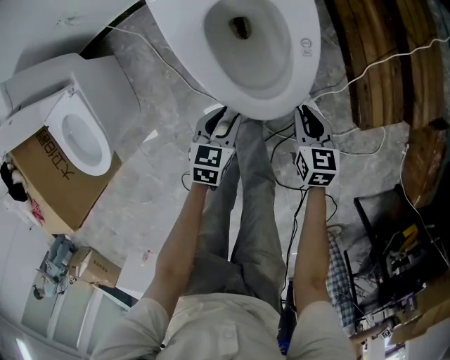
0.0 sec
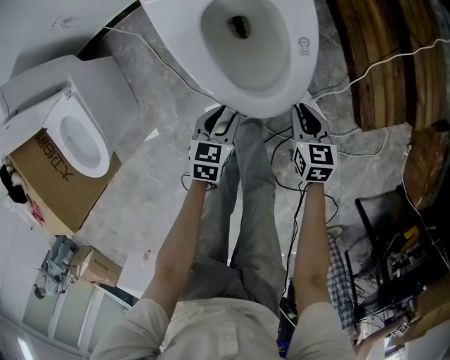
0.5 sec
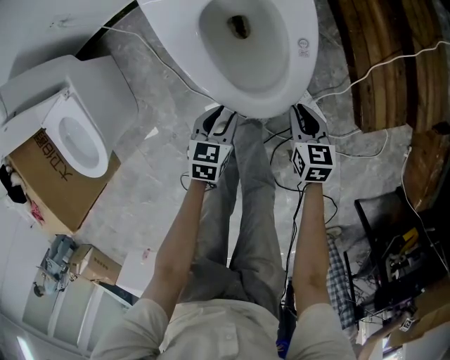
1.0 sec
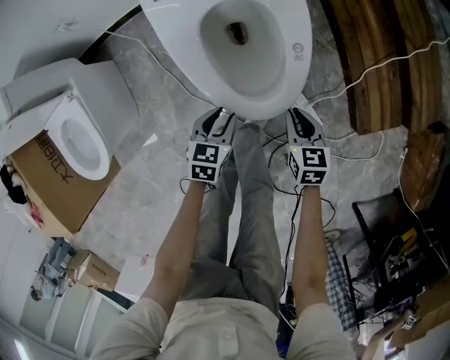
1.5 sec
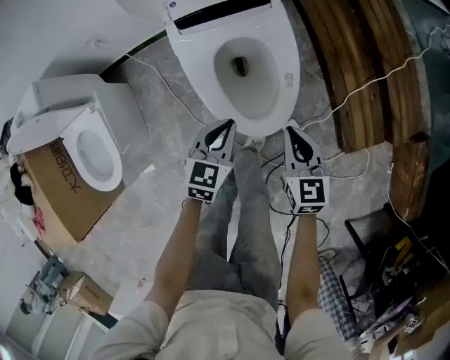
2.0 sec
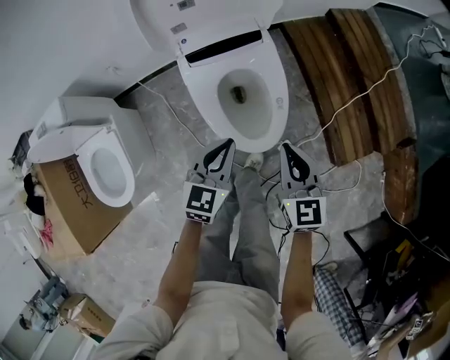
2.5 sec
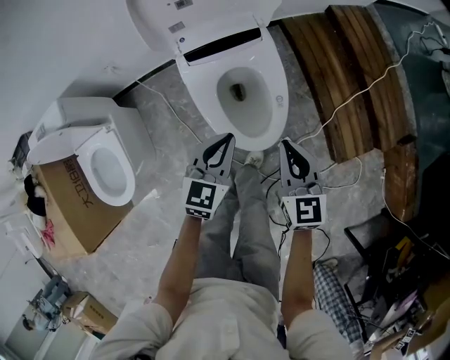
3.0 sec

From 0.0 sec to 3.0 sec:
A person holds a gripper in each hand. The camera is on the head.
From 0.0 sec to 1.5 sec: The grippers stay close to where they were, moving slightly.
From 1.5 sec to 3.0 sec: Both grippers travel together upward, roughly 30 cm. The left gripper rotates approximately 30 degrees, and closes up, while the right gripper turns by approximately 30 degrees.

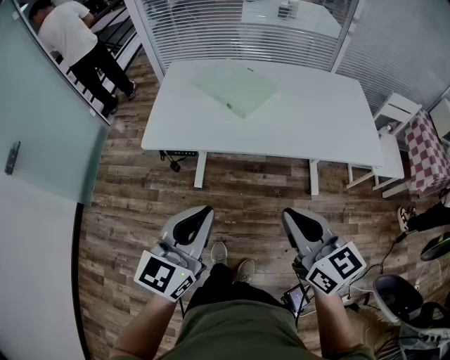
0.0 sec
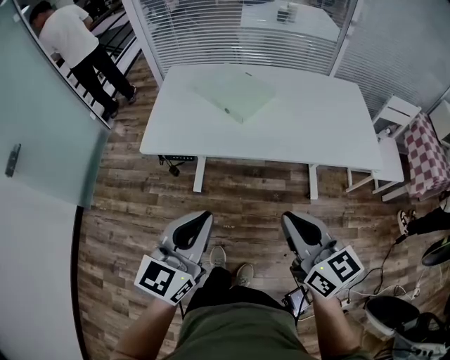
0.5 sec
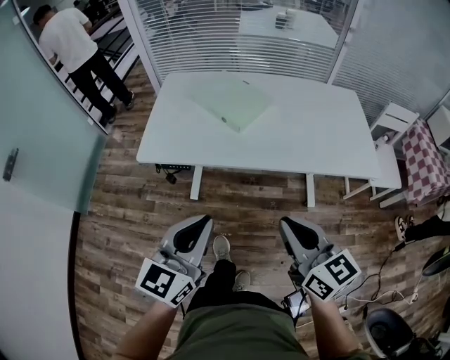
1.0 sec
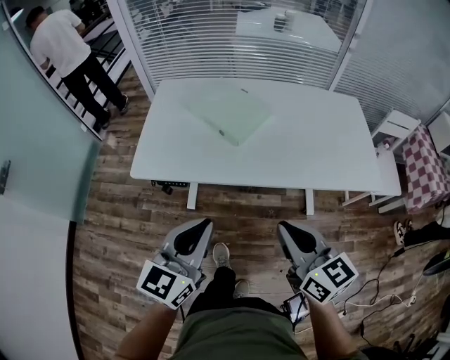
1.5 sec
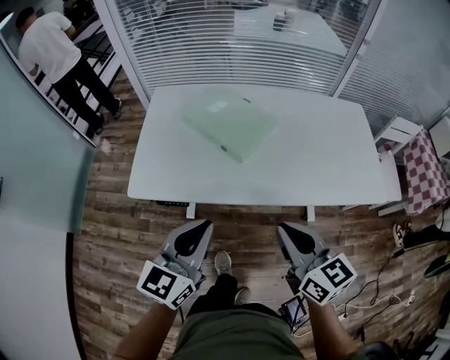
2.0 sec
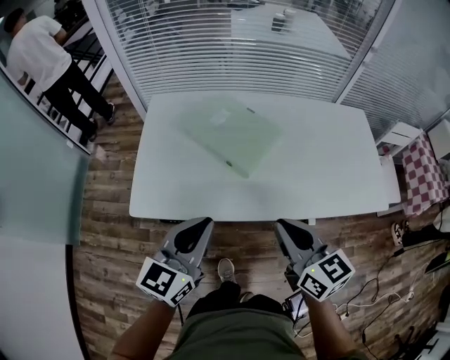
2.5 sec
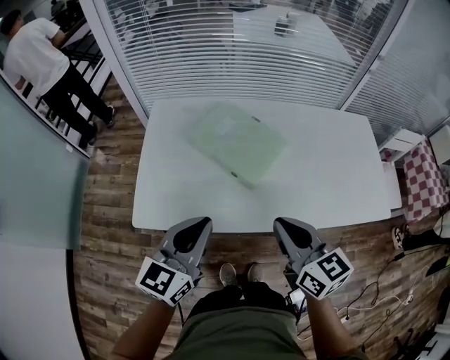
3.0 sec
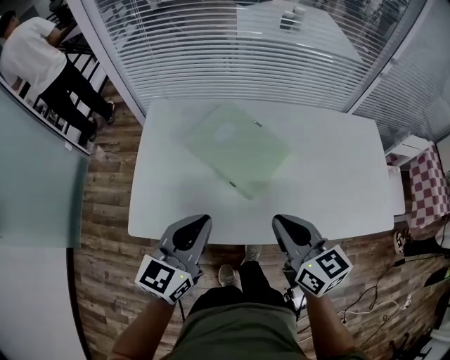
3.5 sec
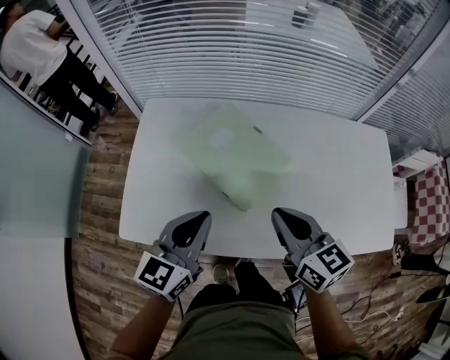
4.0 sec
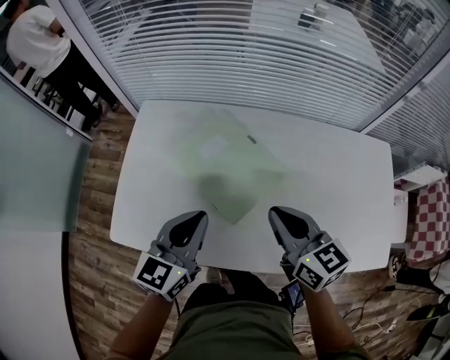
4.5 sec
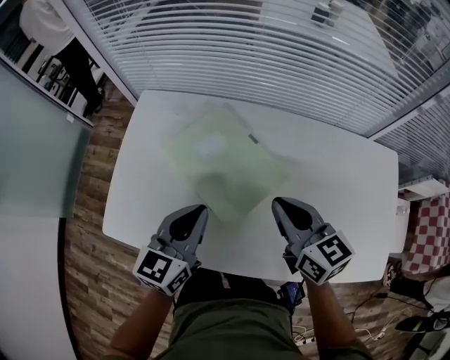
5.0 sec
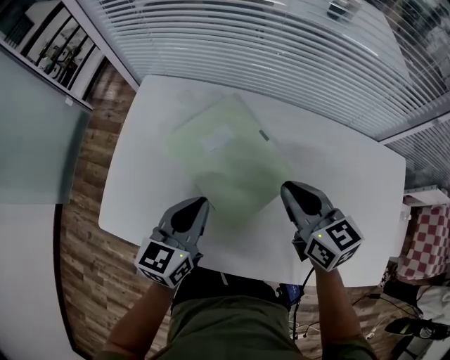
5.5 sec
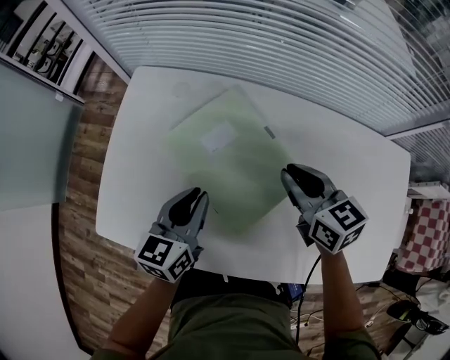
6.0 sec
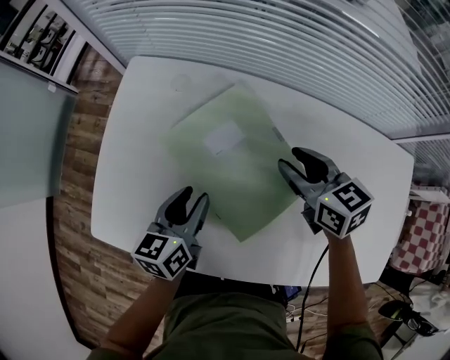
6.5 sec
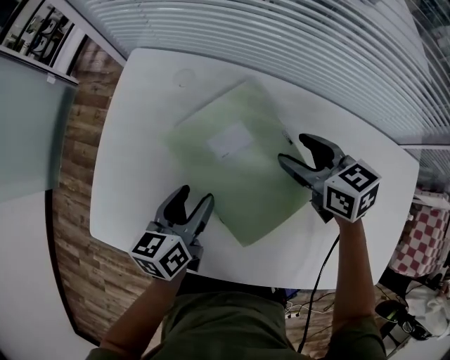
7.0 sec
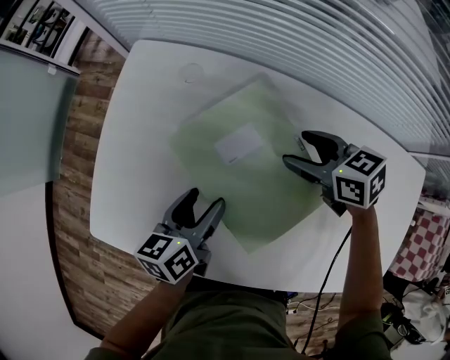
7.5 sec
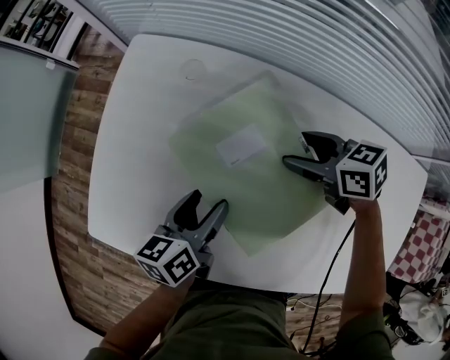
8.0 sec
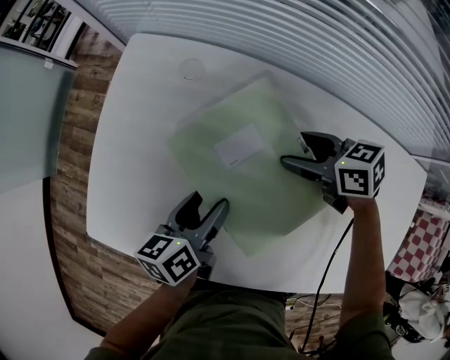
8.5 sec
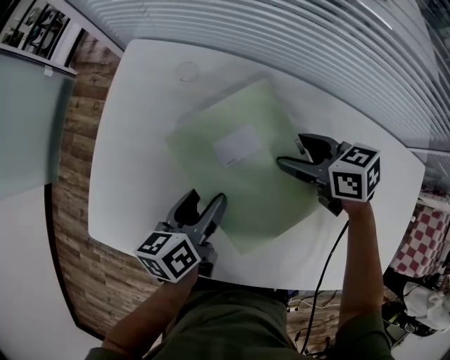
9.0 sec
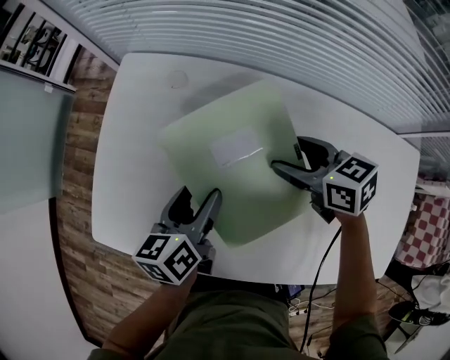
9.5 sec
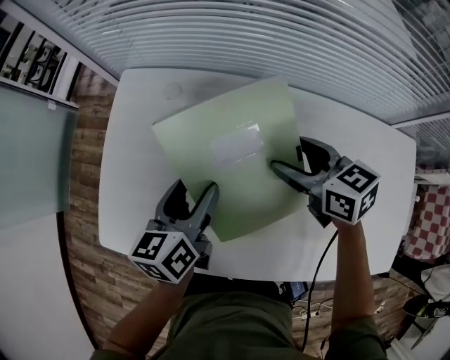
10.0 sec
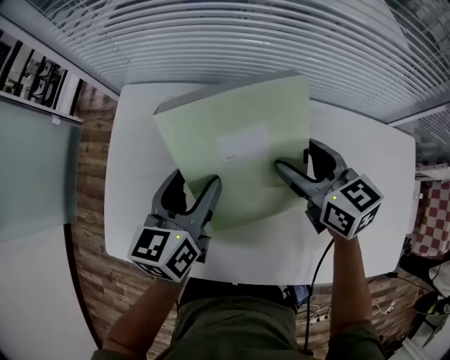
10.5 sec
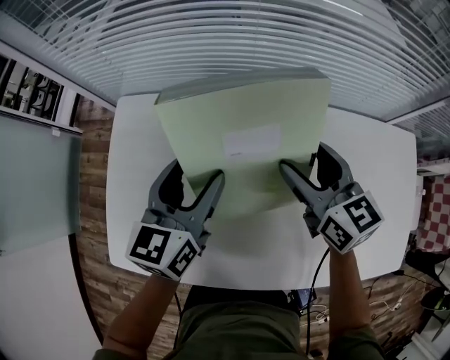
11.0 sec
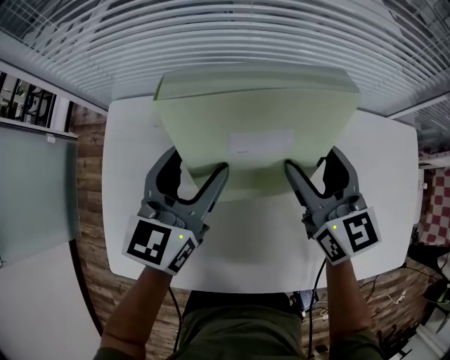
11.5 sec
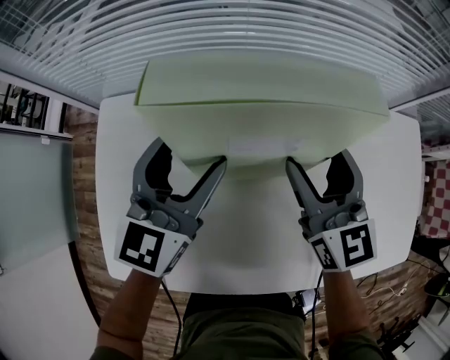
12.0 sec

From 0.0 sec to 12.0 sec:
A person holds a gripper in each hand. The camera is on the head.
From 0.0 sec to 2.0 sec: Both grippers move forward, about 15 cm.
From 2.0 sec to 4.0 sec: Both grippers move forward, approximately 25 cm.
From 4.0 sec to 6.0 sec: The left gripper travels downward and forward by some 15 cm, and changes its angle by roughly 20 degrees. The right gripper heads forward and downward, covering approximately 20 cm.
From 6.0 sec to 8.0 sec: The left gripper moves downward, roughly 10 cm, swivels some 30 degrees, and opens. Meanwhile the right gripper moves downward and forward, about 15 cm, rotates about 30 degrees, and opens up.
From 8.0 sec to 10.0 sec: The left gripper is displaced upward by some 10 cm, while the right gripper is displaced upward and backward by roughly 10 cm, and swivels some 20 degrees.
From 10.0 sec to 12.0 sec: The right gripper moves upward, approximately 5 cm, and swivels about 40 degrees; the left gripper moves roughly 15 cm, and rotates approximately 50 degrees.

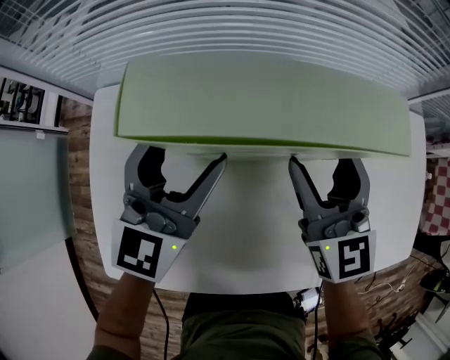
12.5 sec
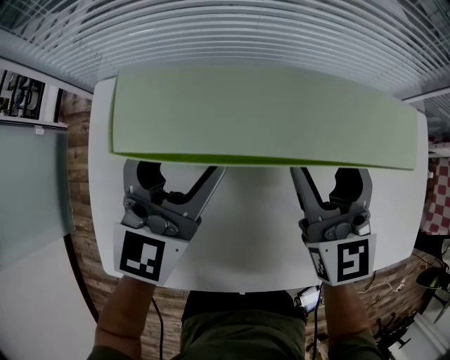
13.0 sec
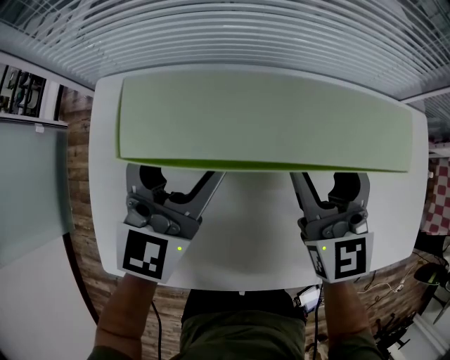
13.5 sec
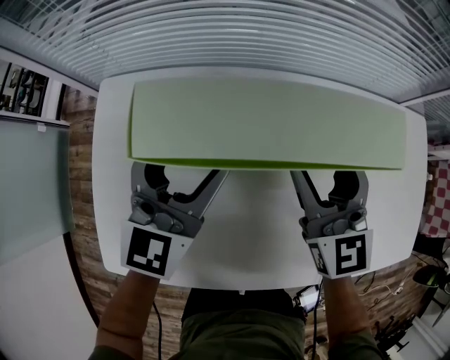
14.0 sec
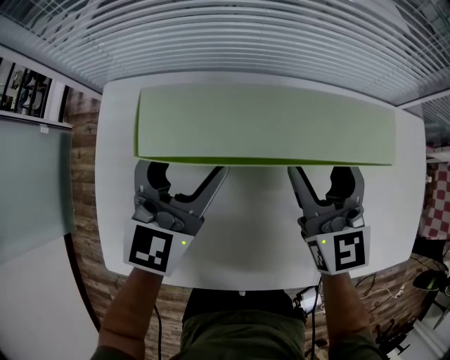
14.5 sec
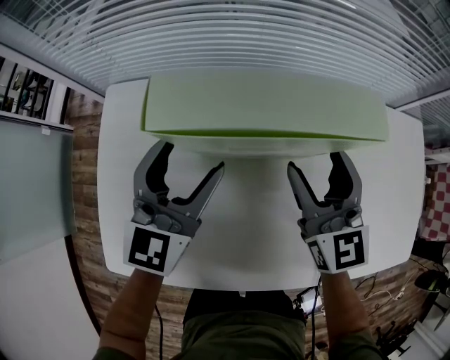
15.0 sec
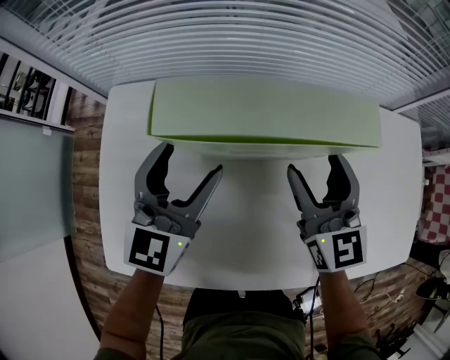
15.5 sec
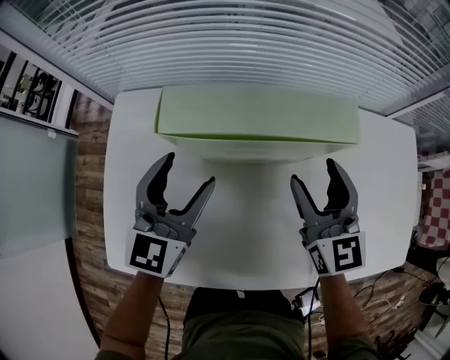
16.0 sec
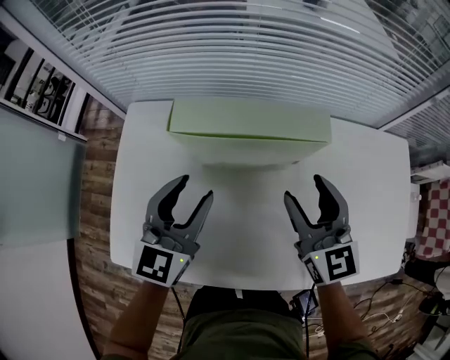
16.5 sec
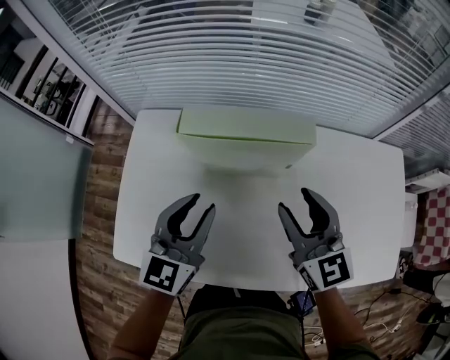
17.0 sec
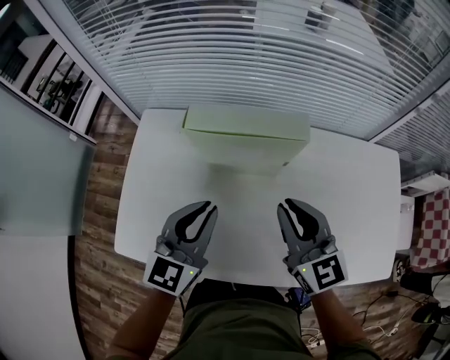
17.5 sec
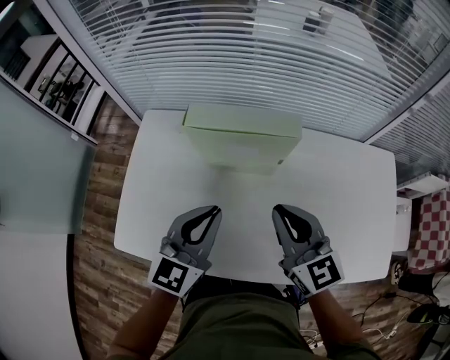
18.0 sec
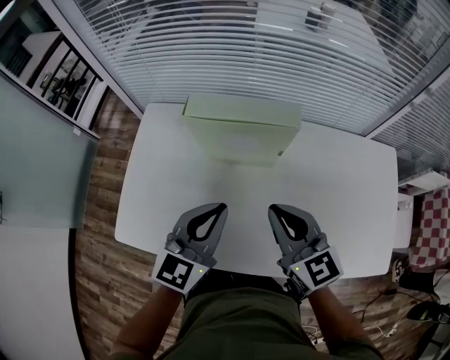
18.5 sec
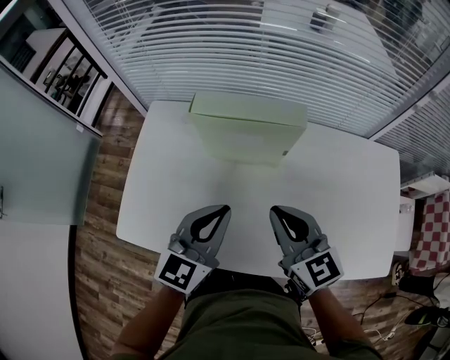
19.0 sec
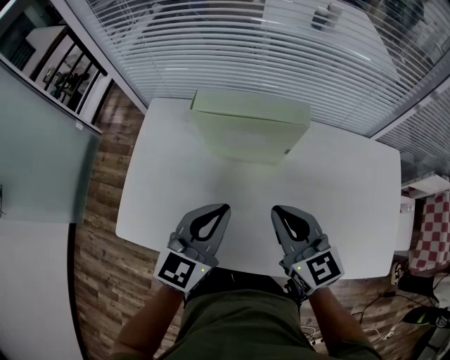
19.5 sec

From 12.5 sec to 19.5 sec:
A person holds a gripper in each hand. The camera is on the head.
From 12.5 sec to 14.5 sec: The grippers move only a little.
From 14.5 sec to 16.0 sec: The grippers stay close to where they were, moving slightly.
From 16.0 sec to 17.5 sec: Both grippers move backward and upward, about 10 cm. The right gripper closes its fingers. Meanwhile the left gripper closes up.
From 17.5 sec to 19.5 sec: The left gripper moves about 5 cm.

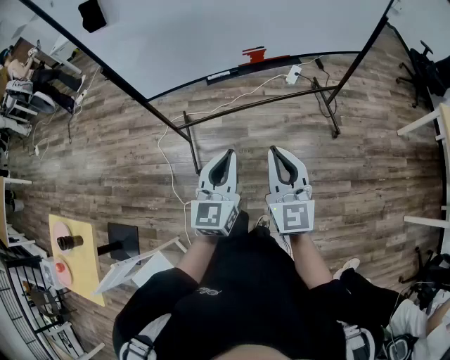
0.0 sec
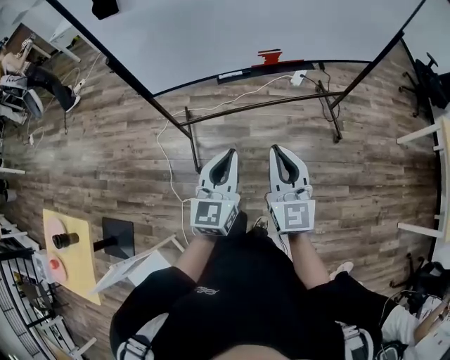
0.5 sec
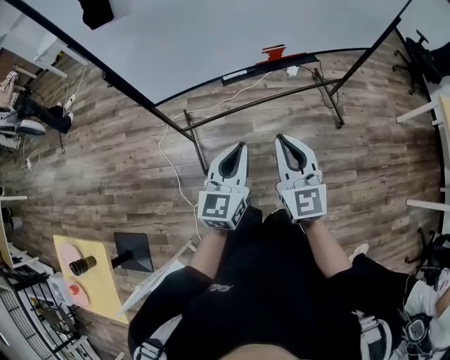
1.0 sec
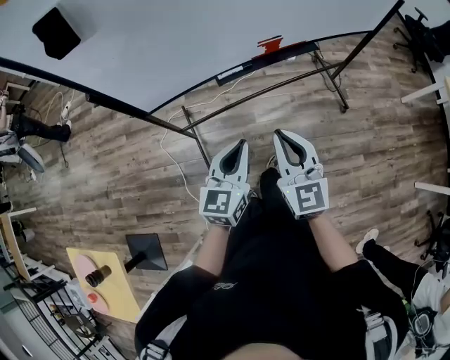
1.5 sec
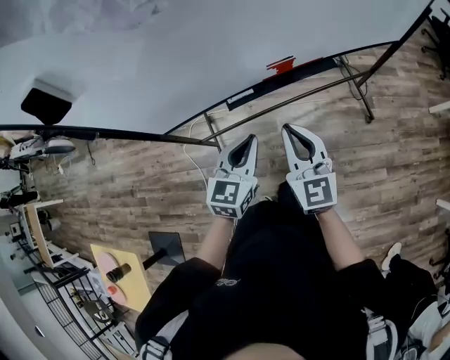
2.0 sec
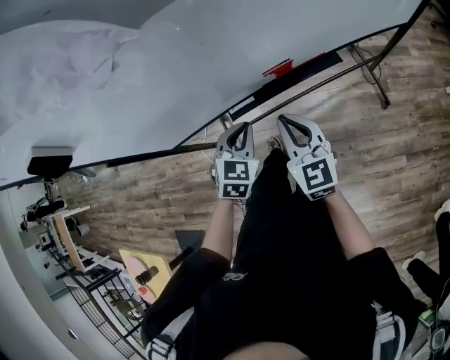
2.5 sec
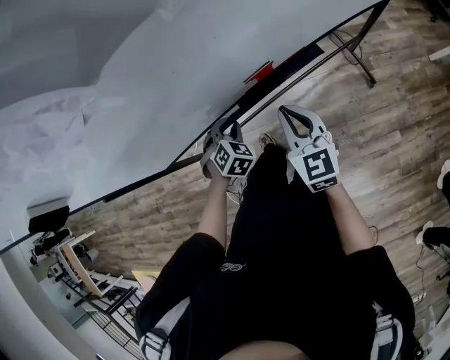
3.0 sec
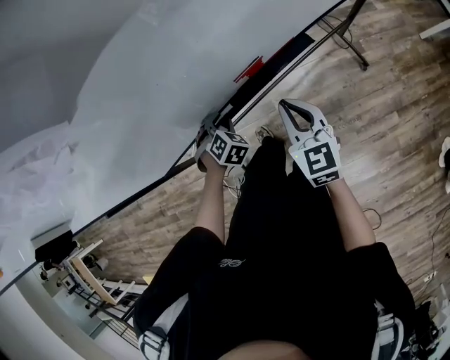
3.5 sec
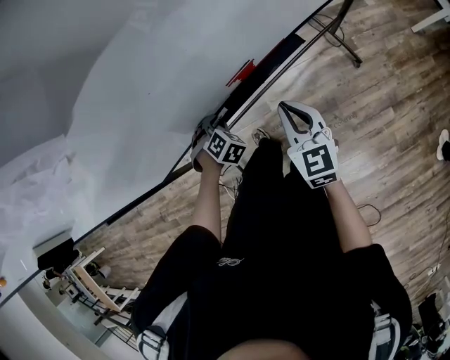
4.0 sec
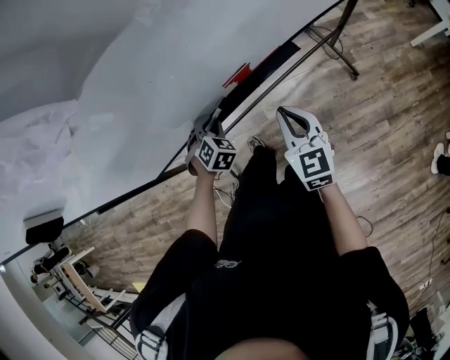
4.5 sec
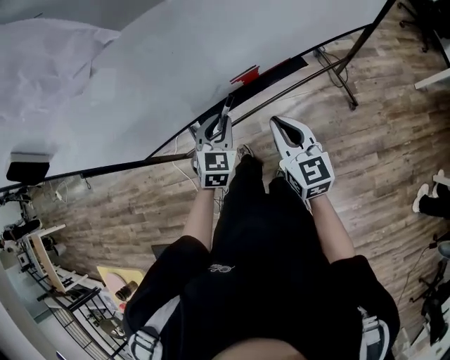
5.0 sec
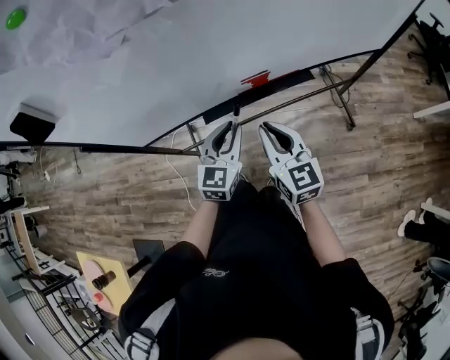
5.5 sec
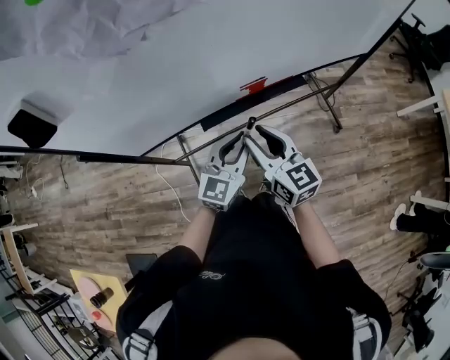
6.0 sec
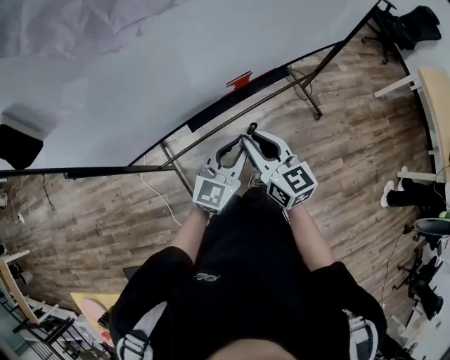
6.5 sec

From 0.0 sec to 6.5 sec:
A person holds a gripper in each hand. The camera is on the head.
From 0.0 sec to 2.0 sec: The two grippers go some 25 cm forward. The left gripper swivels about 20 degrees.
From 2.0 sec to 4.5 sec: The left gripper is displaced downward and forward by roughly 25 cm, and points its fingers about 30 degrees further downward. The right gripper shifts about 15 cm to the right, downward and forward.
From 4.5 sec to 6.5 sec: The right gripper moves to the left, upward and backward, some 15 cm. The left gripper travels upward, backward and to the right by some 25 cm, and angles its fingers upward, by about 50 degrees.
